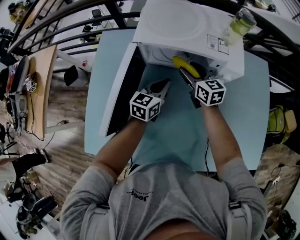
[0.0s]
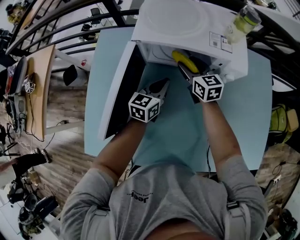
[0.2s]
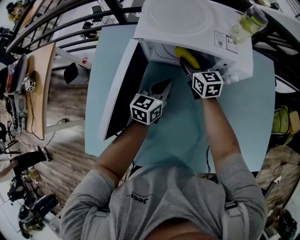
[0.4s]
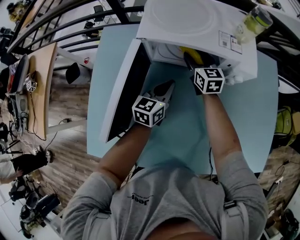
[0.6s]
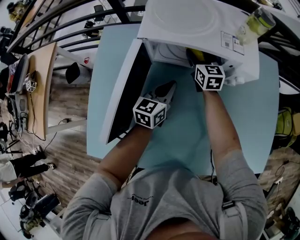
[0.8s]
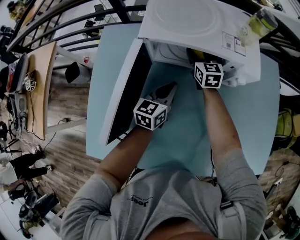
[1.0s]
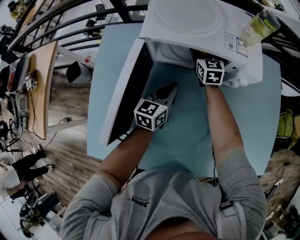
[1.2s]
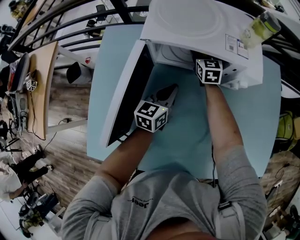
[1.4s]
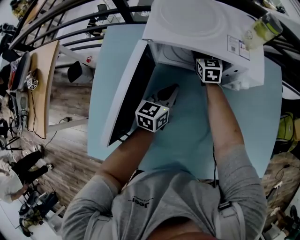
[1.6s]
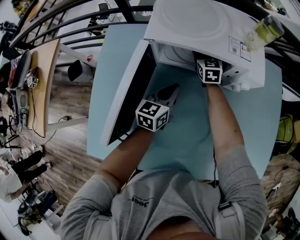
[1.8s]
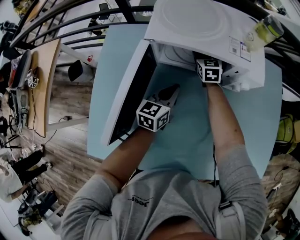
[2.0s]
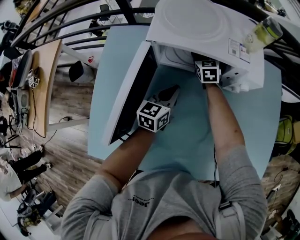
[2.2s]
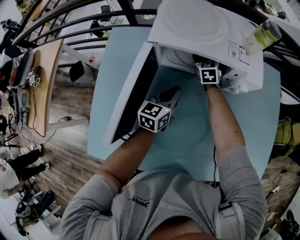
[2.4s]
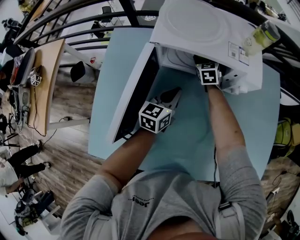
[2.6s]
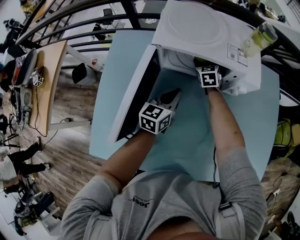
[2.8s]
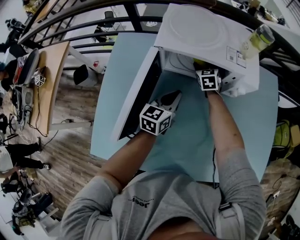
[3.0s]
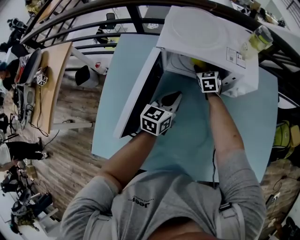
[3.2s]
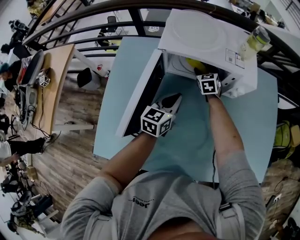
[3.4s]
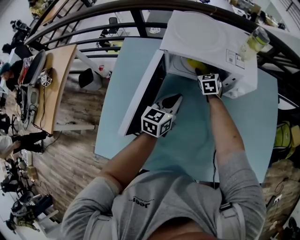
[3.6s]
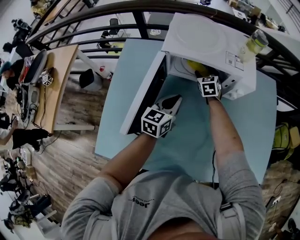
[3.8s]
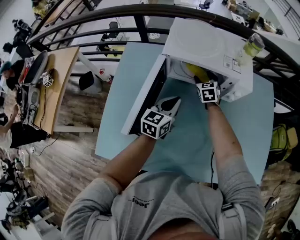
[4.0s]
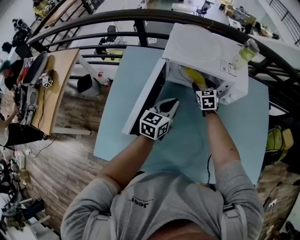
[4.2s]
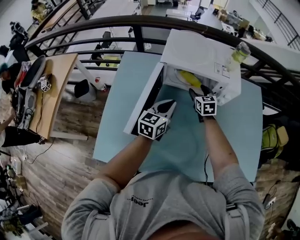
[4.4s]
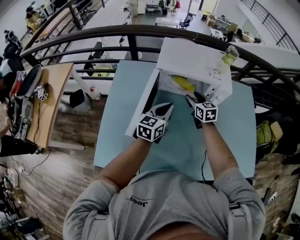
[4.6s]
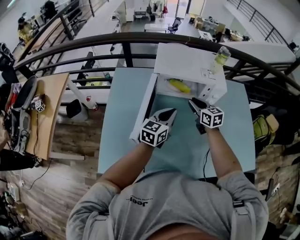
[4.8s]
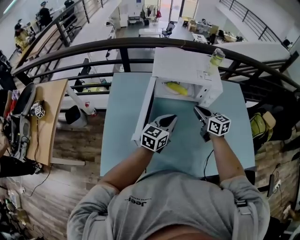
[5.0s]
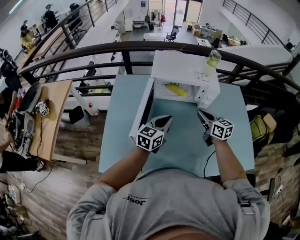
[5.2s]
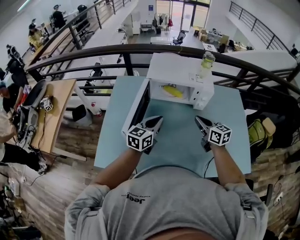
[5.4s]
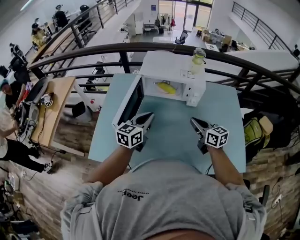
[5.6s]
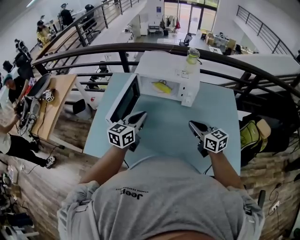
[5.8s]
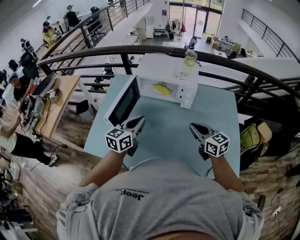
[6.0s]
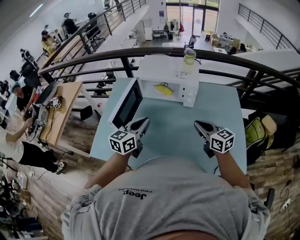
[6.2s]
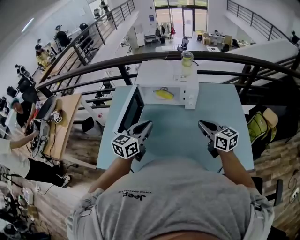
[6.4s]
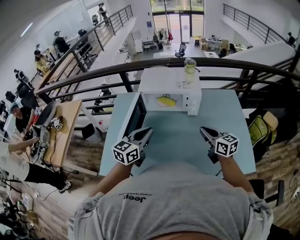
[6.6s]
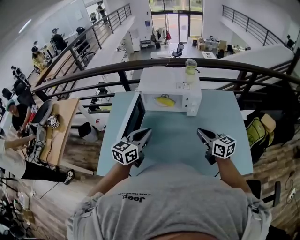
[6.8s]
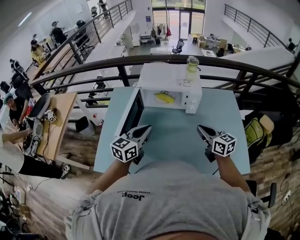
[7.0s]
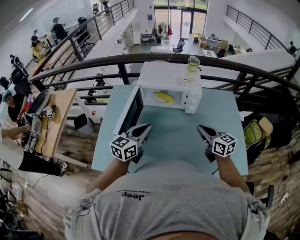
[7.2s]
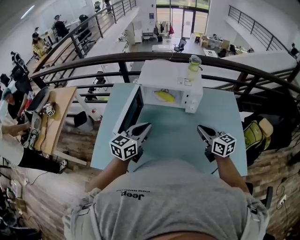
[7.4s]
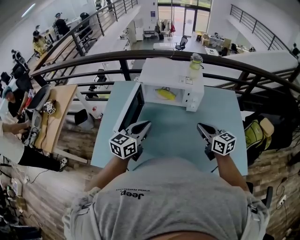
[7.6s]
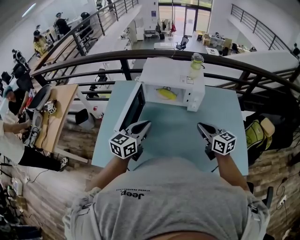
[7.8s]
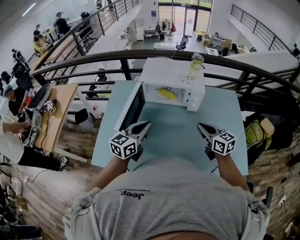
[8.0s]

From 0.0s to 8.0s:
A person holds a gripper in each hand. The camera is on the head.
From 0.0s to 1.6s: The right gripper heads forward and downward, covering approximately 15 cm, and rotates roughly 20 degrees.
From 1.6s to 3.2s: There are only small adjustments of the grippers.
From 3.2s to 4.8s: The right gripper travels backward and upward by about 20 cm, swivels approximately 20 degrees, and closes its fingers, while the left gripper moves upward and backward, about 10 cm.
From 4.8s to 6.4s: The left gripper goes about 15 cm backward and upward; the right gripper shifts approximately 30 cm backward, to the right and upward.
From 6.4s to 8.0s: The grippers move only a little.

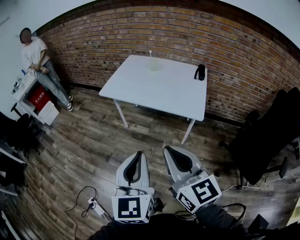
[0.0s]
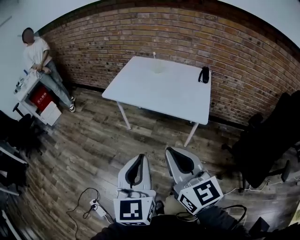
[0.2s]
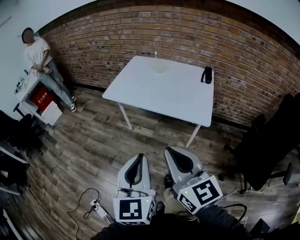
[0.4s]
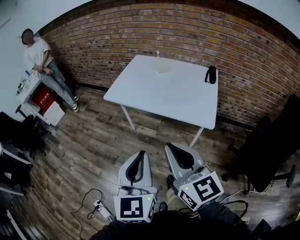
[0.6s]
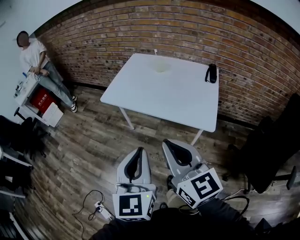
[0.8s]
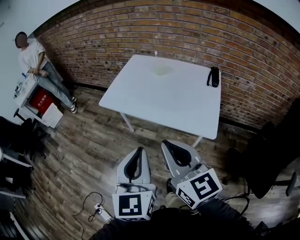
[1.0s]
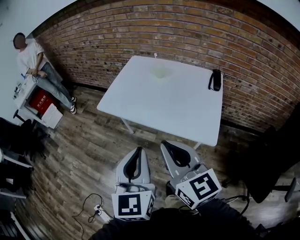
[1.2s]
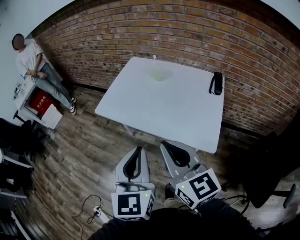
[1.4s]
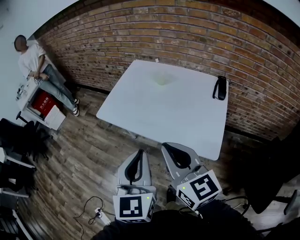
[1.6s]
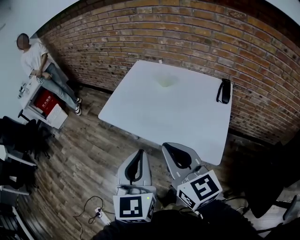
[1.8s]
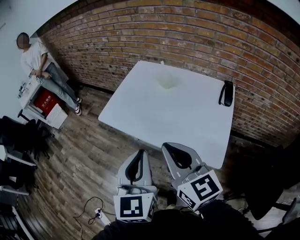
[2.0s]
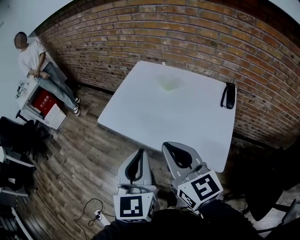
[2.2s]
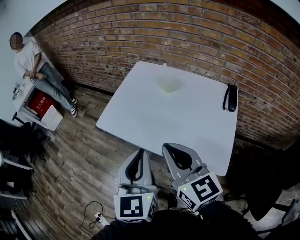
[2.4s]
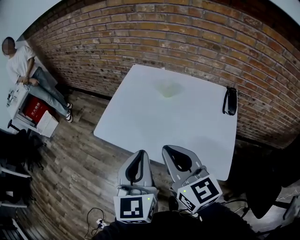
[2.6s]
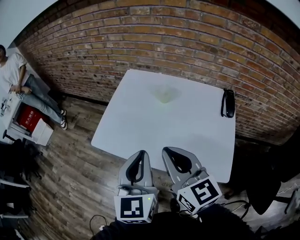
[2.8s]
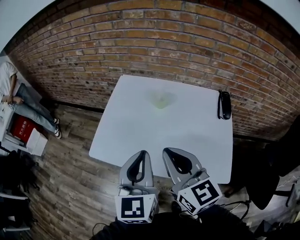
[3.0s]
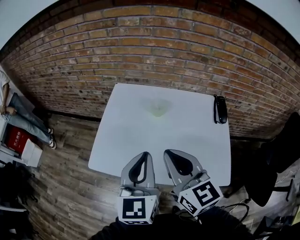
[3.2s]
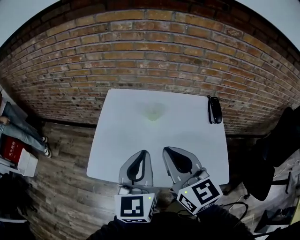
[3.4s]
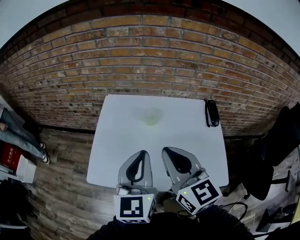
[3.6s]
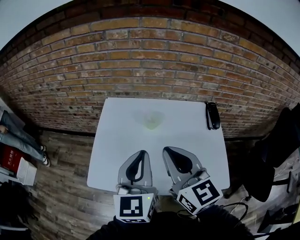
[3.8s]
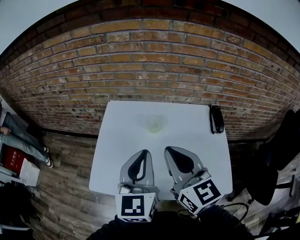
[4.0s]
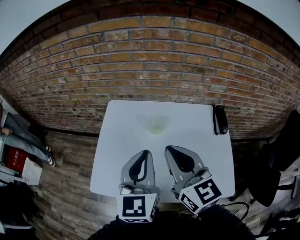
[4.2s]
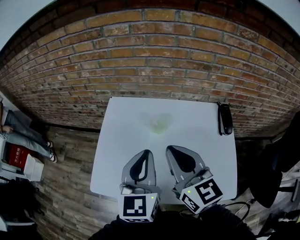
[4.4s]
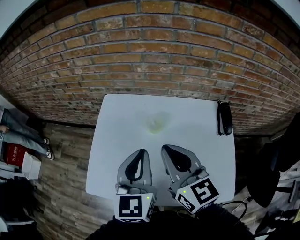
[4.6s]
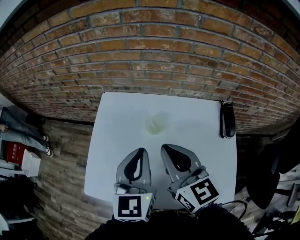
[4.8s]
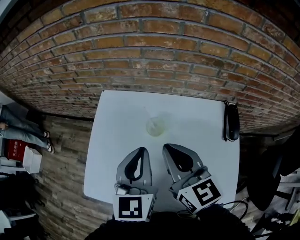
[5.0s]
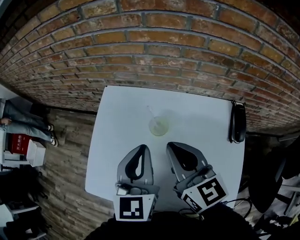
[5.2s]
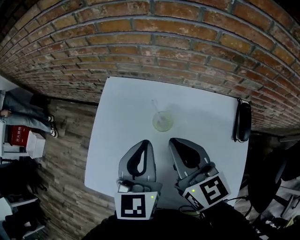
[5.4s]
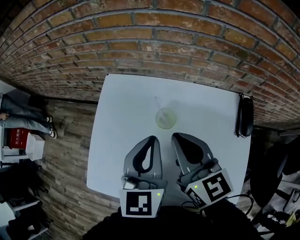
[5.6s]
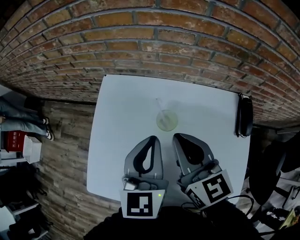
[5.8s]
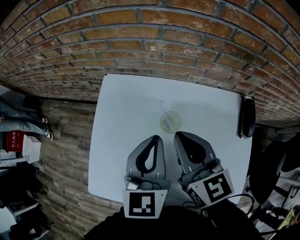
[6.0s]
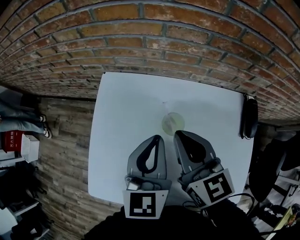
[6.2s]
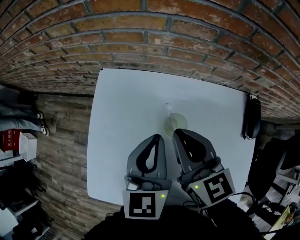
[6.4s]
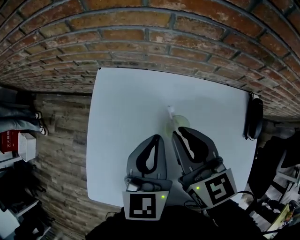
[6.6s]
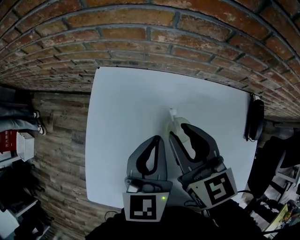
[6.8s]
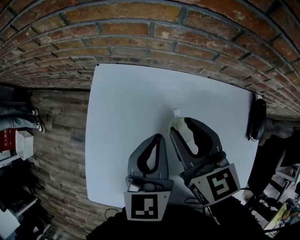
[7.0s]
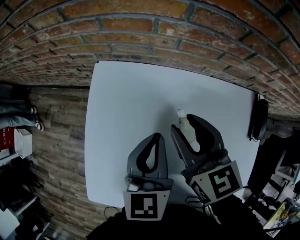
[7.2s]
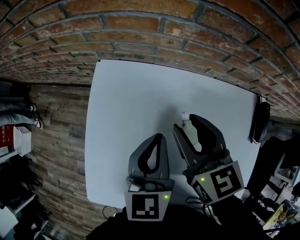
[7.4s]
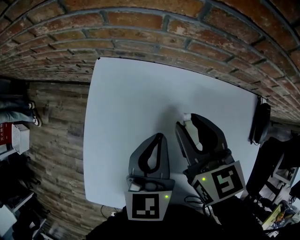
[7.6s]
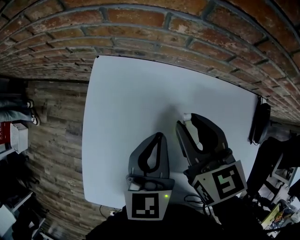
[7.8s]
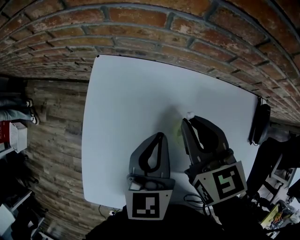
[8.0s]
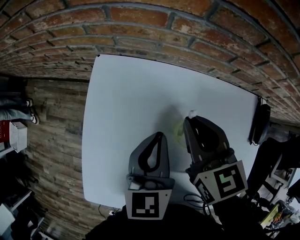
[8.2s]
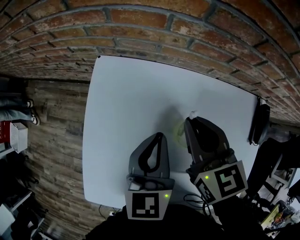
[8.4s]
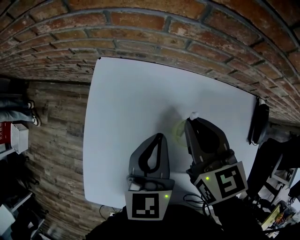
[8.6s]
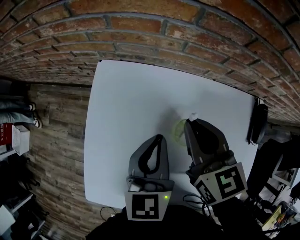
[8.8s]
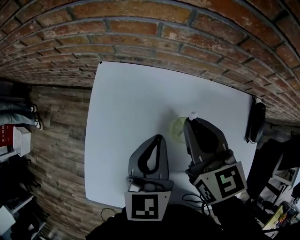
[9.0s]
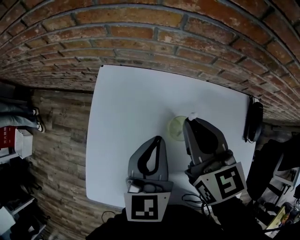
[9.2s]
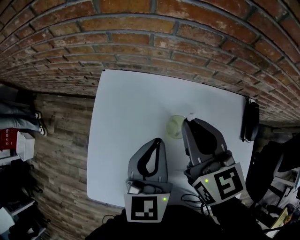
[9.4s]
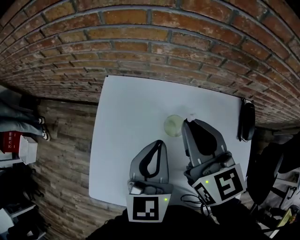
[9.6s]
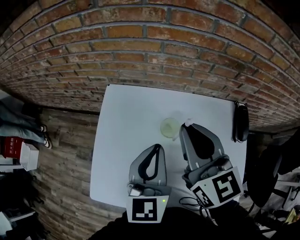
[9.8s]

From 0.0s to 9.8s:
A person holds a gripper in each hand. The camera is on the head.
From 0.0s to 1.4s: The grippers both shift forward by approximately 25 cm.
From 1.4s to 2.8s: Both grippers travel together forward, about 20 cm.
From 2.8s to 4.2s: Both grippers travel together forward, roughly 15 cm.
From 4.2s to 5.6s: The two grippers go about 15 cm forward and downward.
From 5.6s to 7.0s: The right gripper travels forward and downward by roughly 10 cm, and opens up, while the left gripper travels downward and forward by some 10 cm.
From 7.0s to 8.4s: The right gripper closes up.
From 8.4s to 9.8s: The grippers both shift upward and backward by approximately 15 cm. The right gripper rotates about 20 degrees.

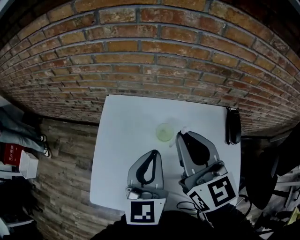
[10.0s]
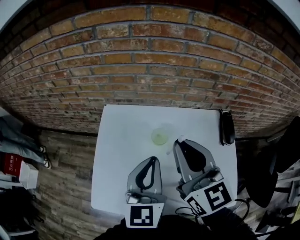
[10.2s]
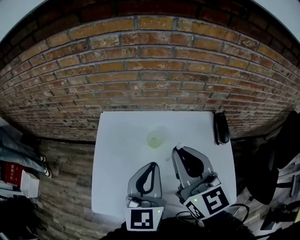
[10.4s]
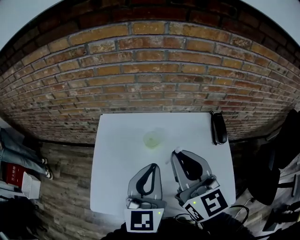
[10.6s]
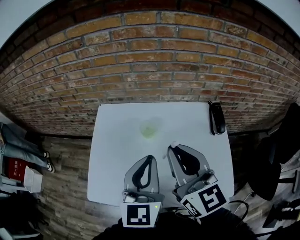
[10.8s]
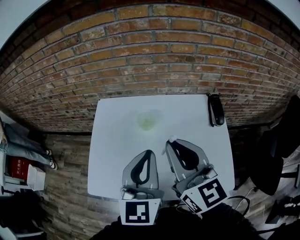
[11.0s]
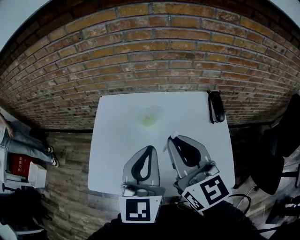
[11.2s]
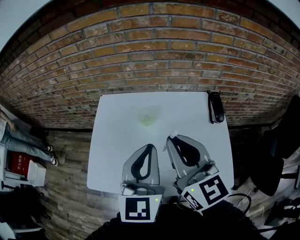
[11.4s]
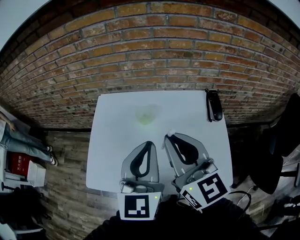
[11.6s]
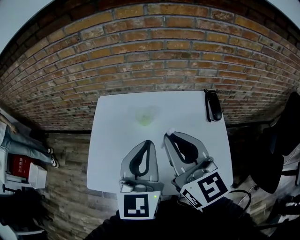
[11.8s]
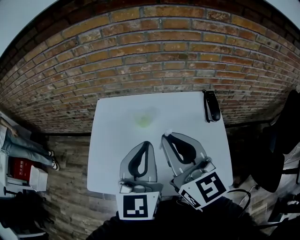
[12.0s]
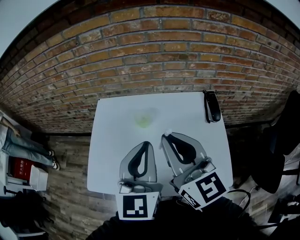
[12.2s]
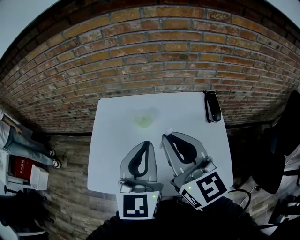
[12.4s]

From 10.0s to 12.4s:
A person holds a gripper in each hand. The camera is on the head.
From 10.0s to 11.2s: The left gripper shifts about 15 cm backward, to the right and upward, while the right gripper heads backward and to the right, covering about 15 cm.
From 11.2s to 12.4s: The grippers stay close to where they were, moving slightly.

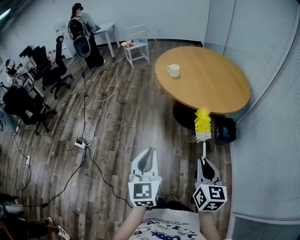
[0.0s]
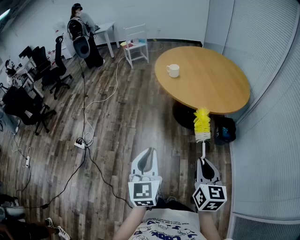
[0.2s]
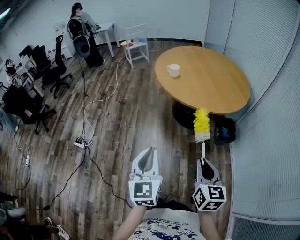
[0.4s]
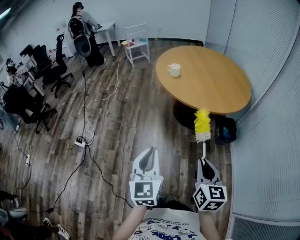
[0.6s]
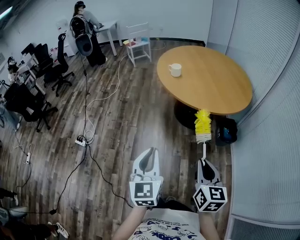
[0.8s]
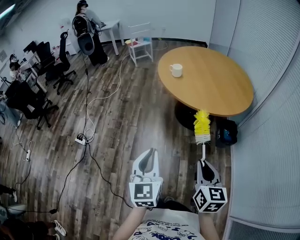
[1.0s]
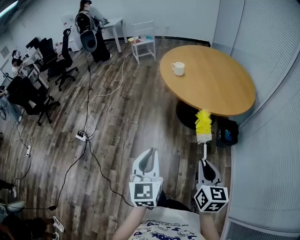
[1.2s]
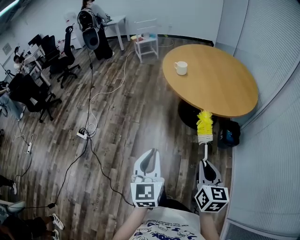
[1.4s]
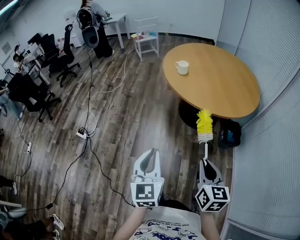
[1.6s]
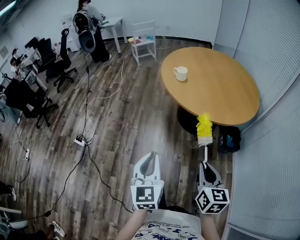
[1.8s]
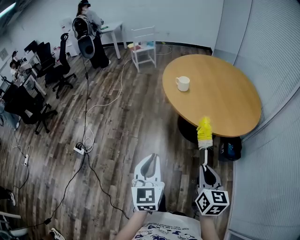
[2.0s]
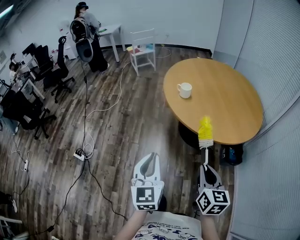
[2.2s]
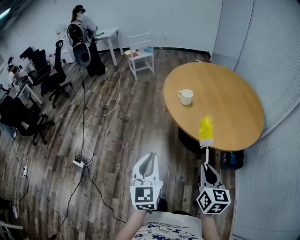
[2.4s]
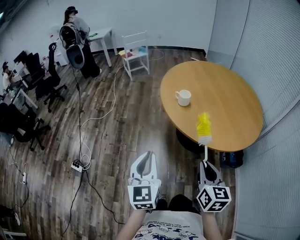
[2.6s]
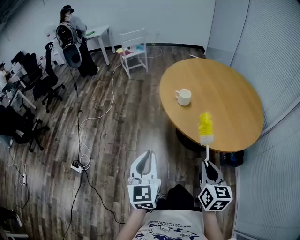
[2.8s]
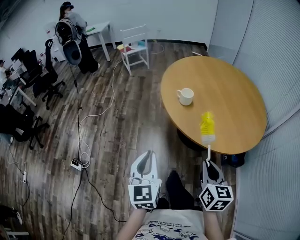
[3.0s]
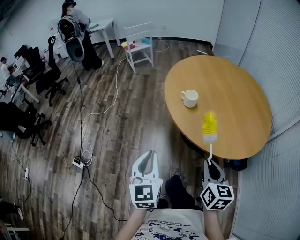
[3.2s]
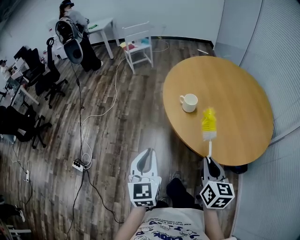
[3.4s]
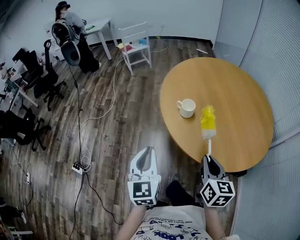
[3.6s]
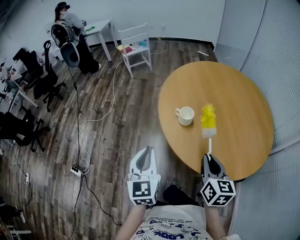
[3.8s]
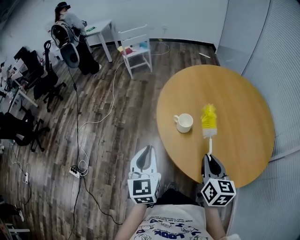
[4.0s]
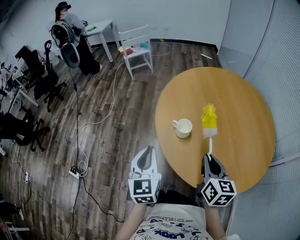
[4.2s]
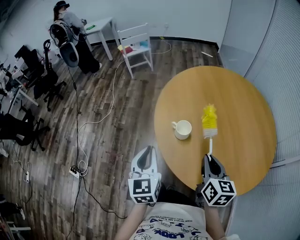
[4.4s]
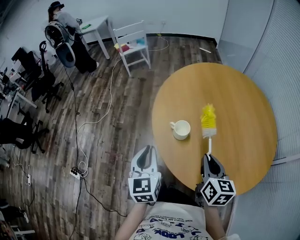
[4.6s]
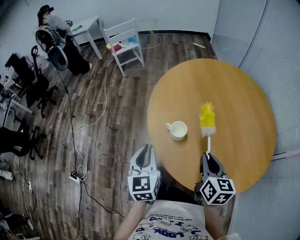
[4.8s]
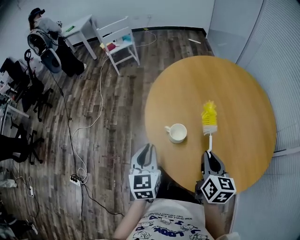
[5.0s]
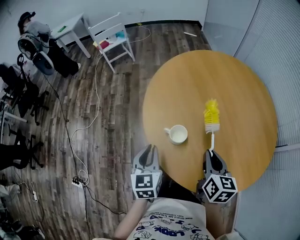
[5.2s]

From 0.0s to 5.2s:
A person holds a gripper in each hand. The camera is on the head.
From 0.0s to 1.8s: The grippers both shift forward by approximately 5 cm.
From 1.8s to 3.4s: The grippers both shift forward by some 30 cm.
From 3.4s to 5.2s: Both grippers move forward, approximately 25 cm.
